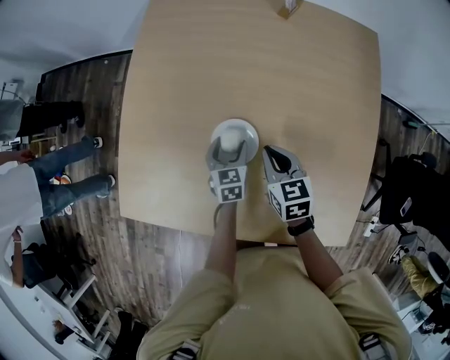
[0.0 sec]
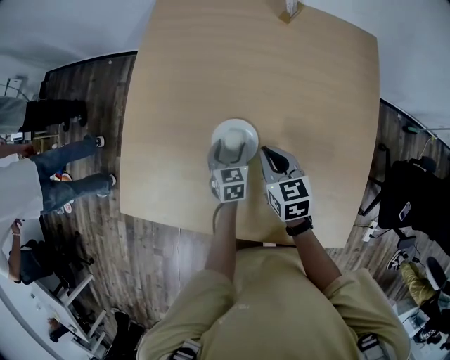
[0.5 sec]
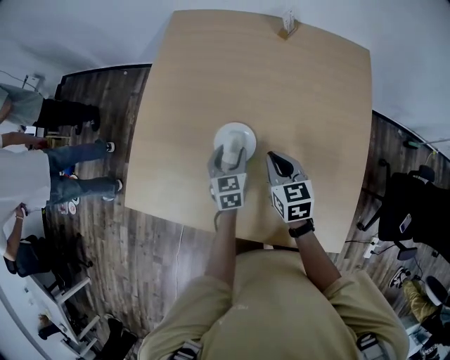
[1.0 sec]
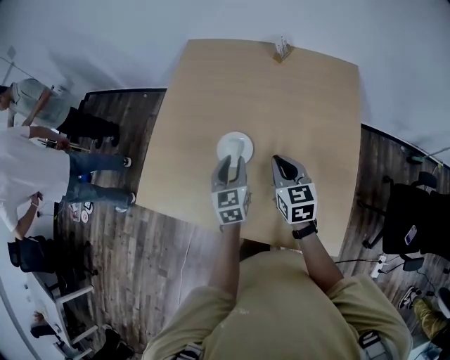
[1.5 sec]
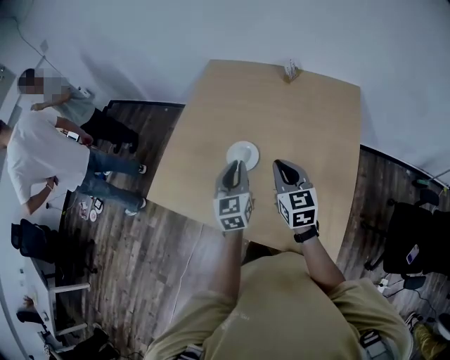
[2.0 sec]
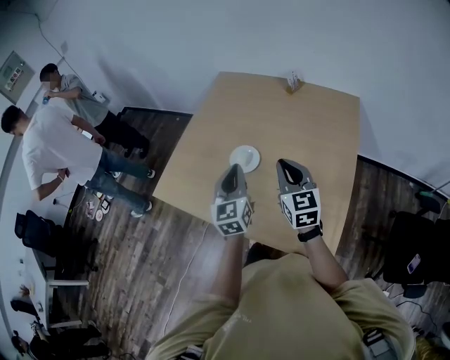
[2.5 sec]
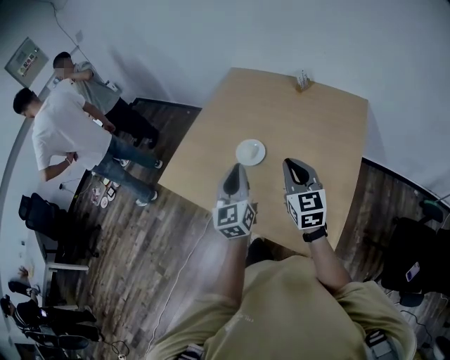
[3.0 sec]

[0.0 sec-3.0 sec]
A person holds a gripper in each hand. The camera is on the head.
0.0 sec to 1.5 sec: The left gripper heads upward and backward, covering approximately 25 cm, and closes its fingers. Meanwhile the right gripper shifts roughly 20 cm upward, backward and to the right.
1.5 sec to 3.0 sec: The two grippers go approximately 20 cm backward and upward. The left gripper changes its angle by approximately 30 degrees, and closes. Meanwhile the right gripper changes its angle by about 20 degrees.

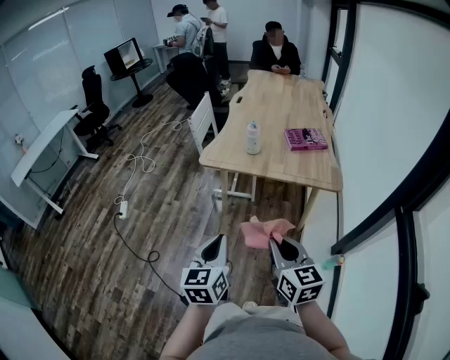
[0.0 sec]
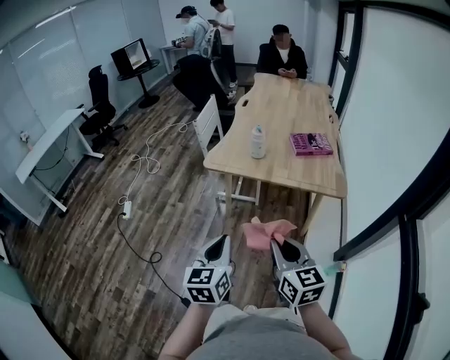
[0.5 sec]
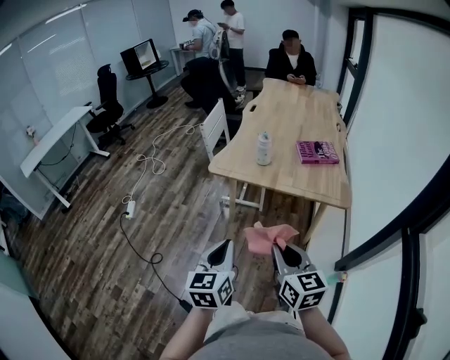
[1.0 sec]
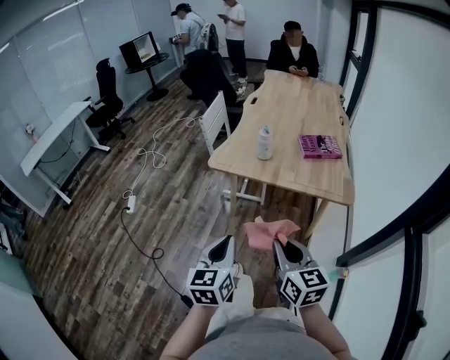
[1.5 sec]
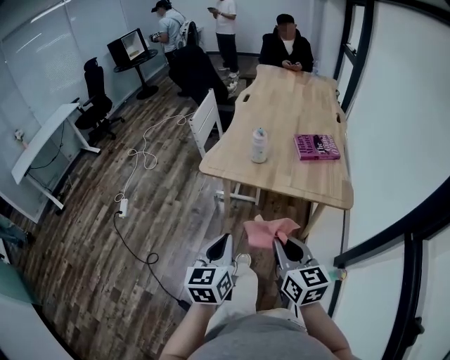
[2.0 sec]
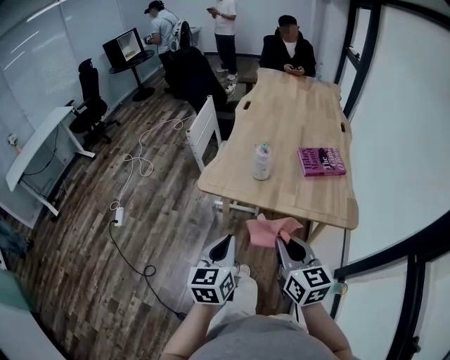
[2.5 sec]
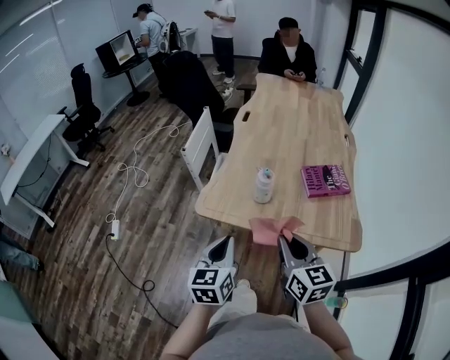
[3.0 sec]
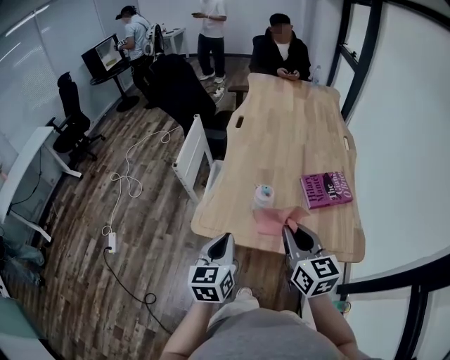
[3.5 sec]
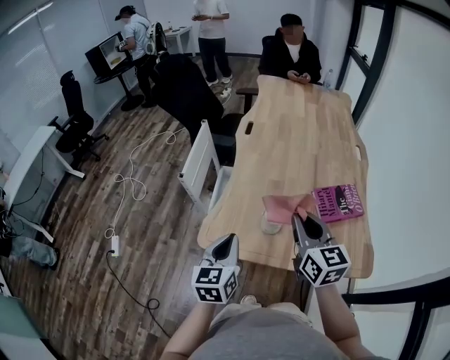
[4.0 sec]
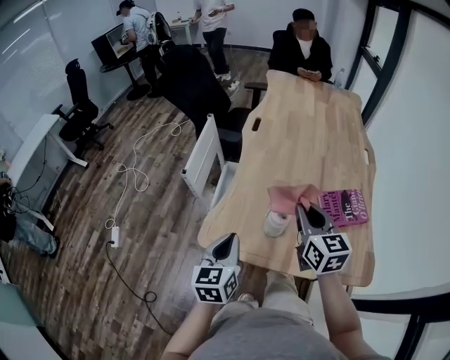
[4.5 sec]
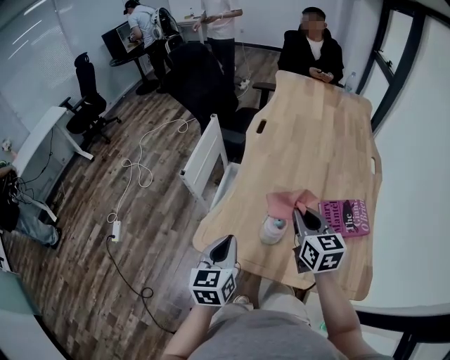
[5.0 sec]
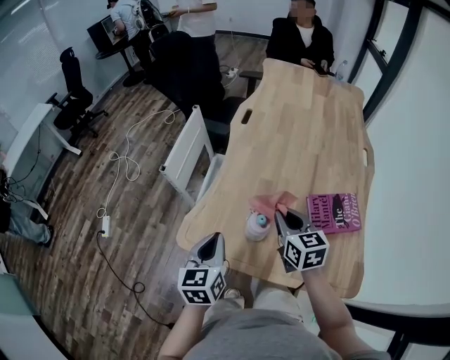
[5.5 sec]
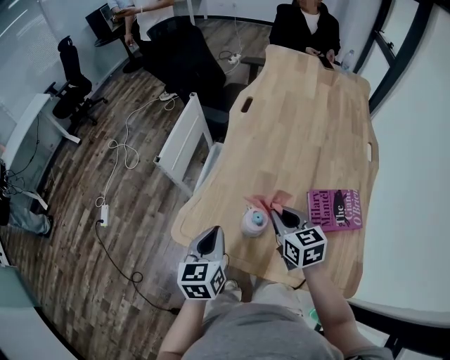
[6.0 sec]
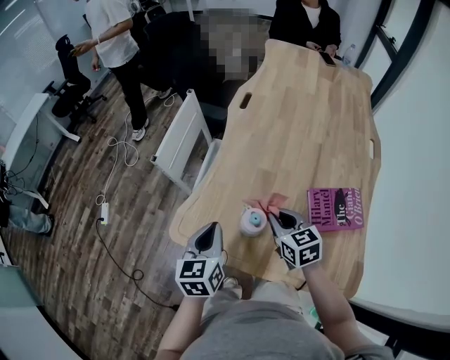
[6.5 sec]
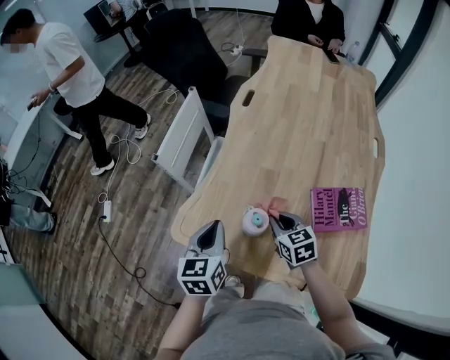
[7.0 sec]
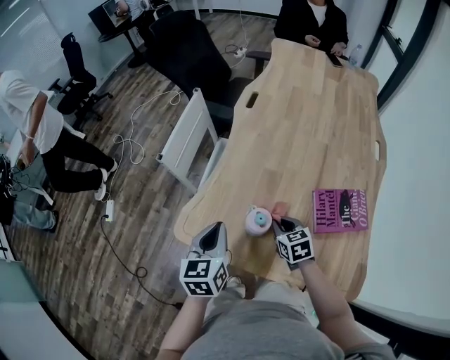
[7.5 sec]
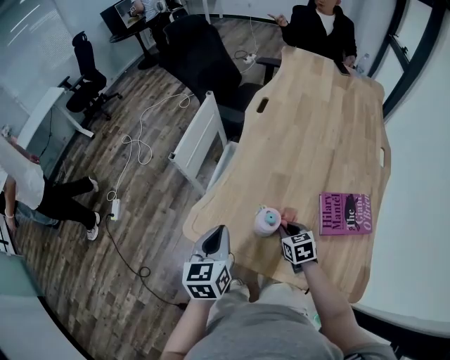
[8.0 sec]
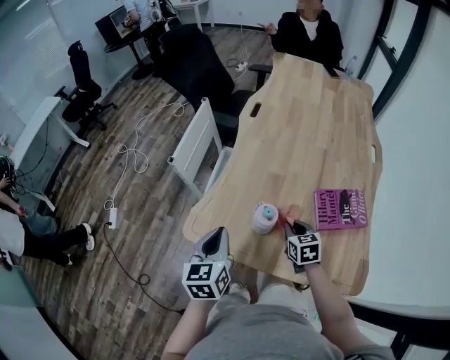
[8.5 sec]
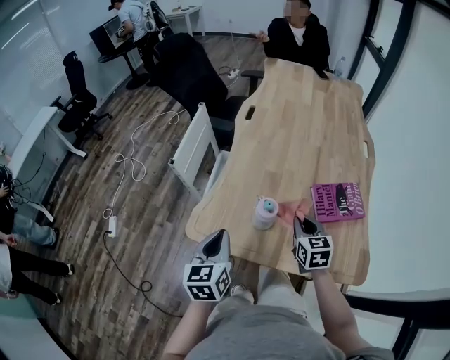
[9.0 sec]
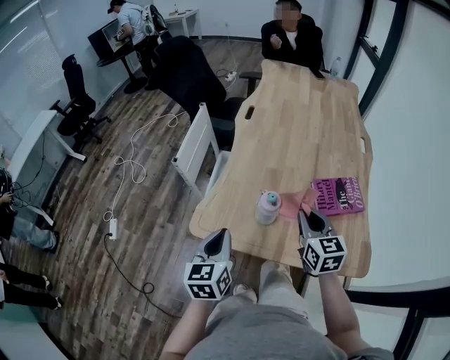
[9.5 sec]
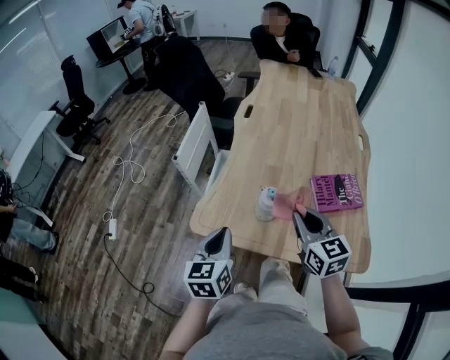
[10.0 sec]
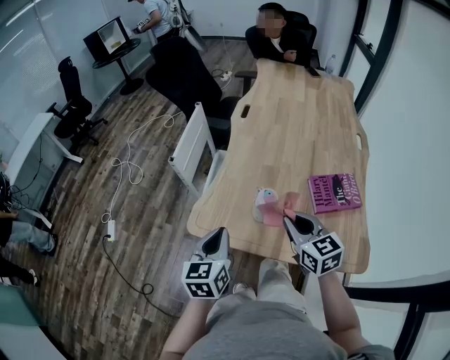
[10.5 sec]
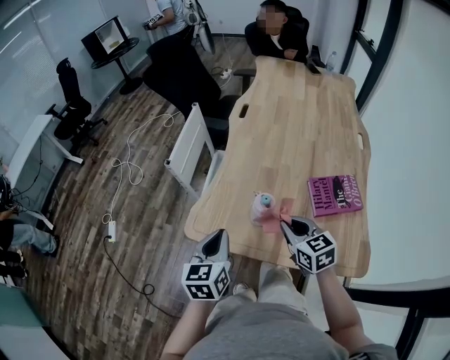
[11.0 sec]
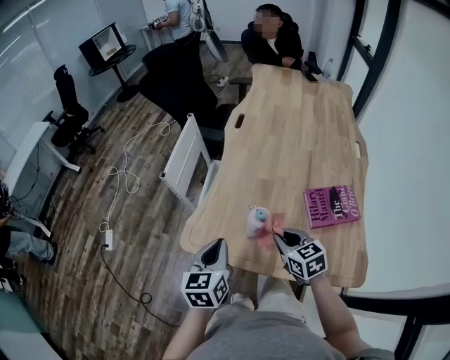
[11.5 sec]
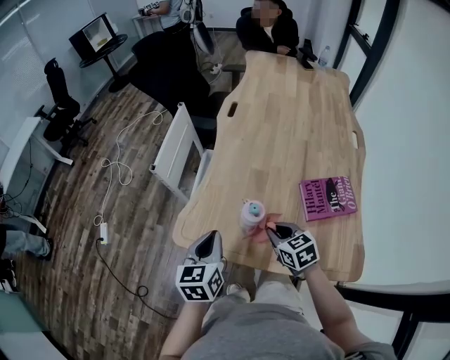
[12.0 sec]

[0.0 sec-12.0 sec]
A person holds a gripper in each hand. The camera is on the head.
0.0 sec to 2.0 sec: The two grippers go roughly 10 cm forward.
2.0 sec to 4.0 sec: The grippers both shift forward by some 40 cm.
4.0 sec to 6.0 sec: The right gripper goes some 20 cm downward and forward, and changes its angle by about 30 degrees, while the left gripper goes approximately 10 cm forward and downward.
6.0 sec to 8.0 sec: The right gripper moves downward, about 15 cm.
8.0 sec to 10.0 sec: The right gripper is displaced upward by approximately 25 cm, and tips its fingers upward by some 30 degrees. The left gripper travels backward by about 5 cm.
10.0 sec to 12.0 sec: The left gripper travels forward by some 5 cm. The right gripper shifts about 15 cm downward, and changes its angle by some 30 degrees.

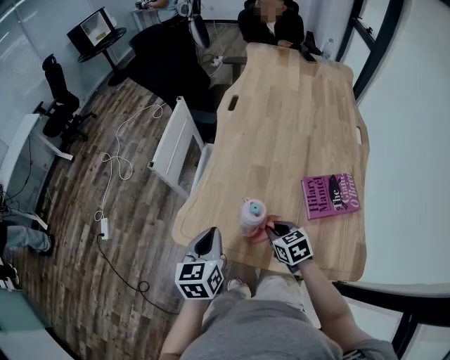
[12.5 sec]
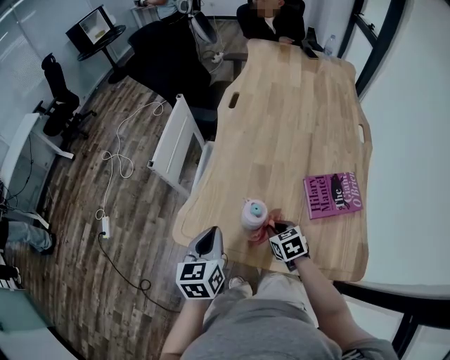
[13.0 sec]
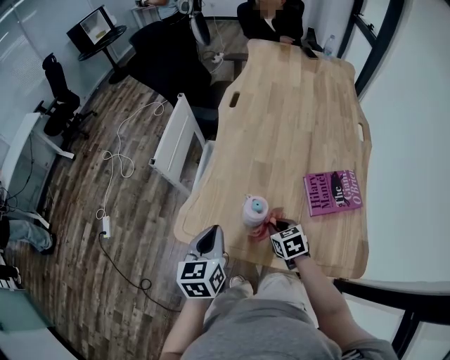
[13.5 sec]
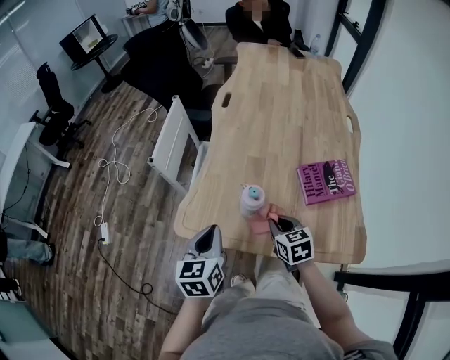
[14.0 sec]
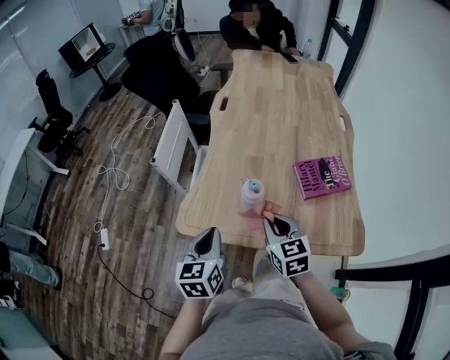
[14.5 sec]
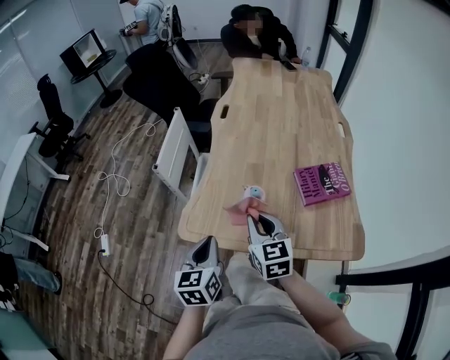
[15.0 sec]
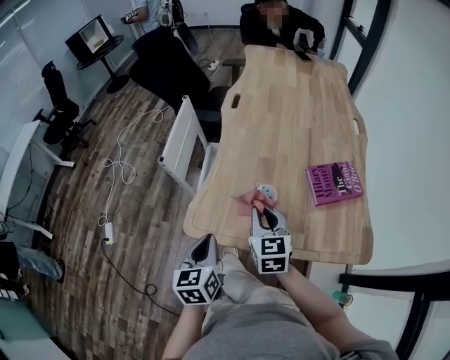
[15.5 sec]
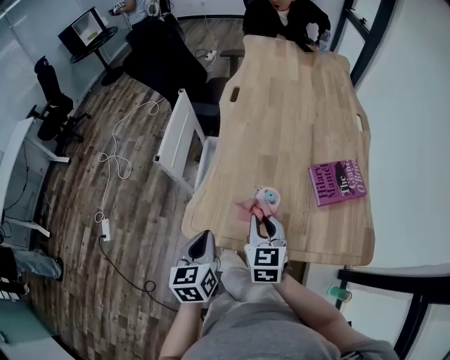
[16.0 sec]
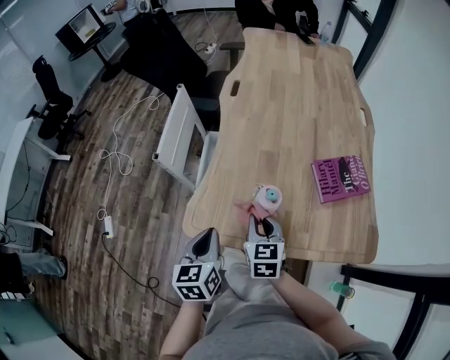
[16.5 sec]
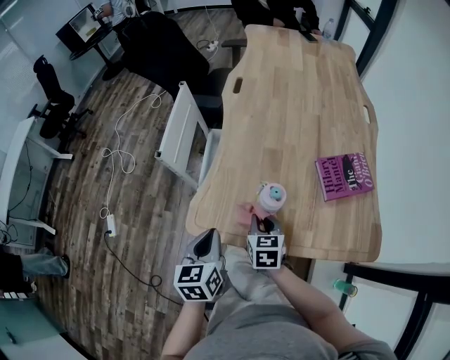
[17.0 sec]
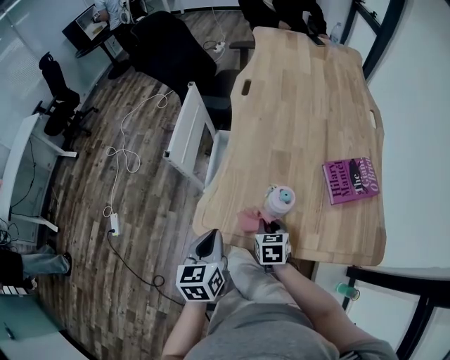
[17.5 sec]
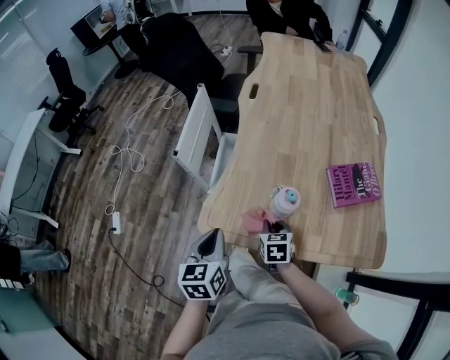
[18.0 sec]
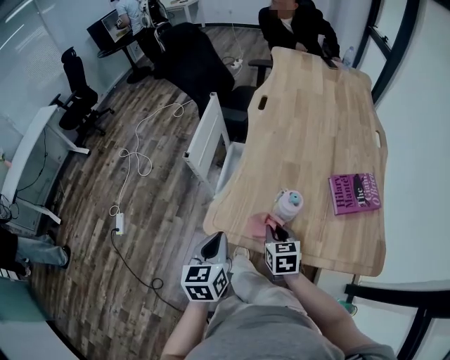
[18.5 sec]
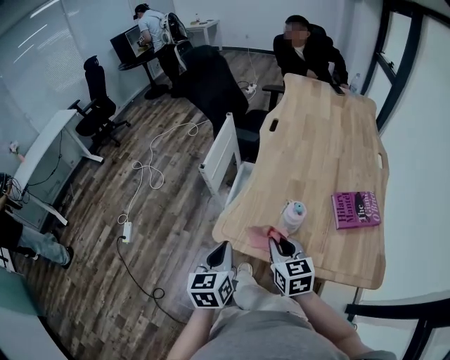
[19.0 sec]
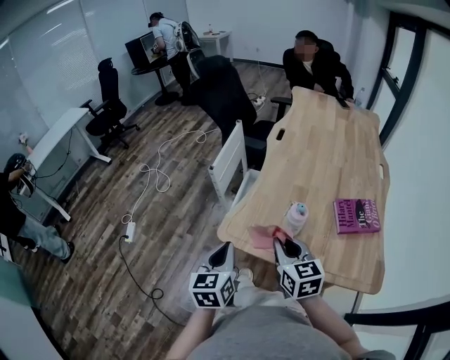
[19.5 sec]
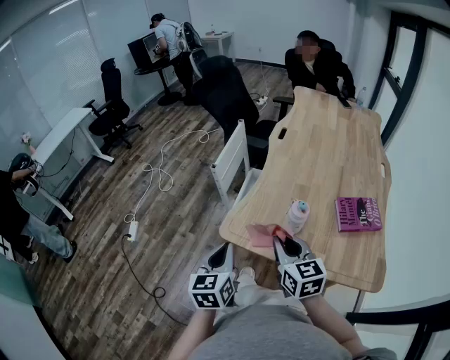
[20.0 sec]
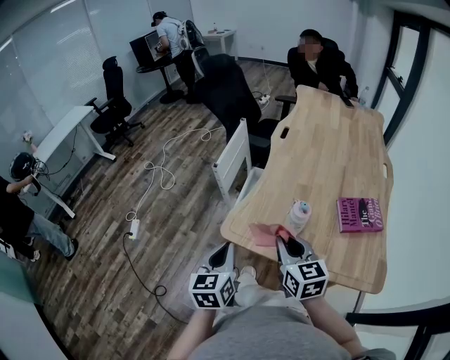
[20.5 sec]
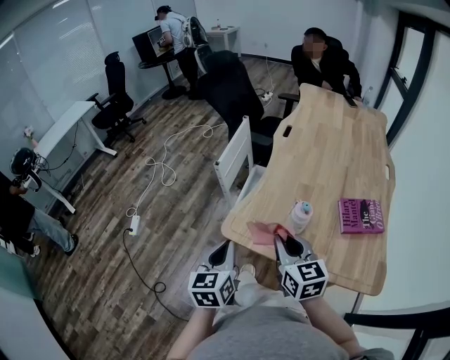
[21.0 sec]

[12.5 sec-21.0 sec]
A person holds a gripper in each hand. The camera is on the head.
12.5 sec to 14.5 sec: The right gripper moves upward and backward, approximately 15 cm, and rotates approximately 20 degrees. Meanwhile the left gripper shifts approximately 5 cm backward.
14.5 sec to 16.5 sec: The right gripper goes approximately 10 cm to the left, forward and downward. Meanwhile the left gripper changes place by roughly 5 cm.
16.5 sec to 19.0 sec: The right gripper travels backward and upward by approximately 10 cm, while the left gripper heads backward, covering some 5 cm.
19.0 sec to 21.0 sec: The right gripper shifts about 5 cm upward.

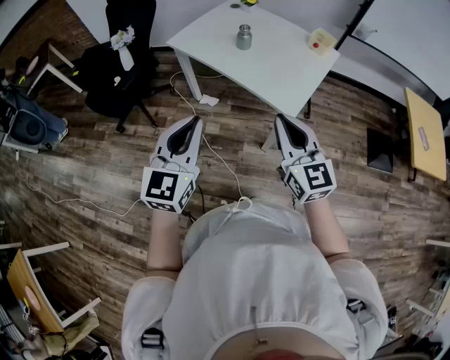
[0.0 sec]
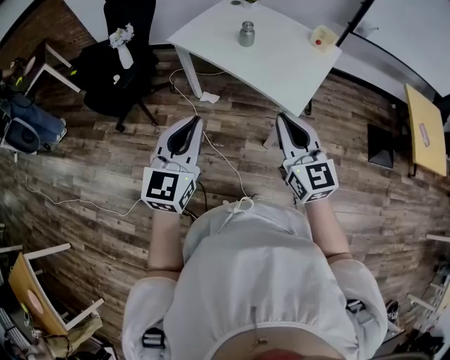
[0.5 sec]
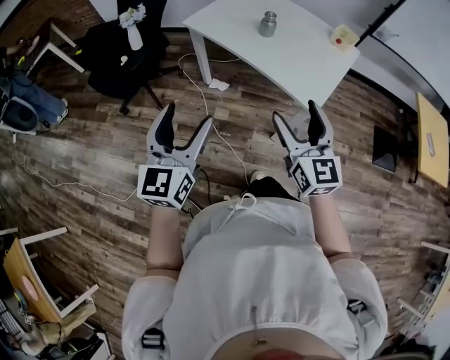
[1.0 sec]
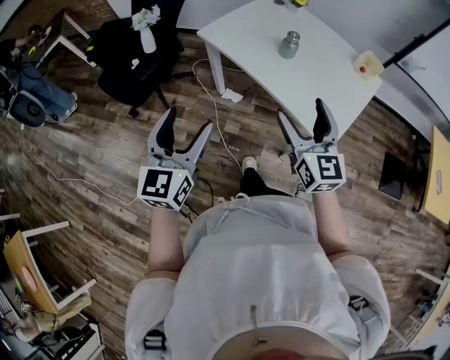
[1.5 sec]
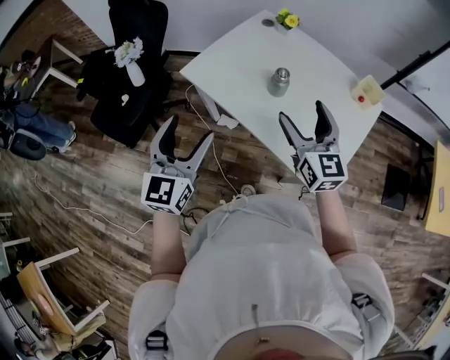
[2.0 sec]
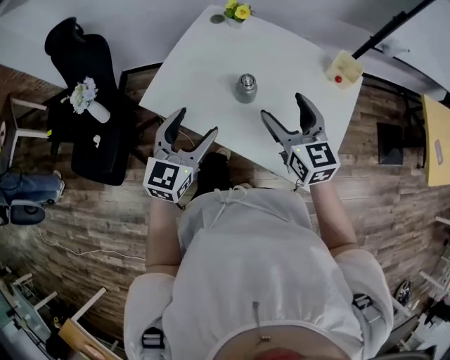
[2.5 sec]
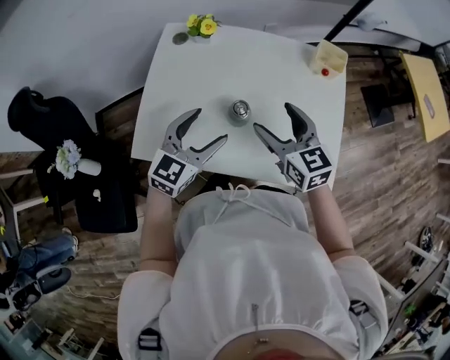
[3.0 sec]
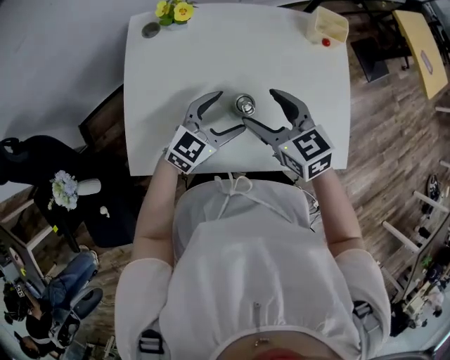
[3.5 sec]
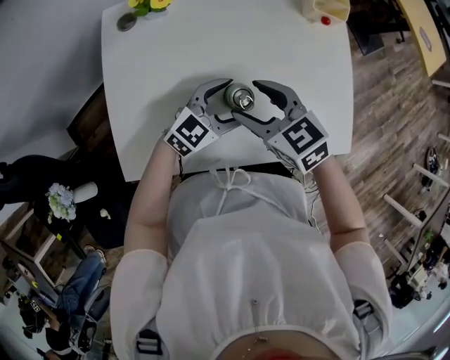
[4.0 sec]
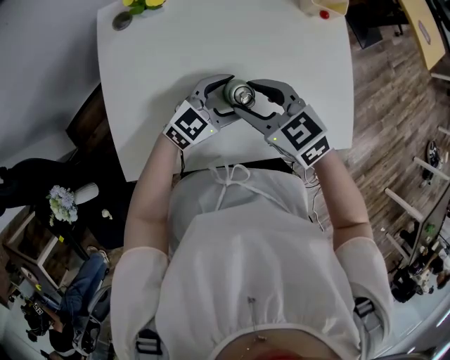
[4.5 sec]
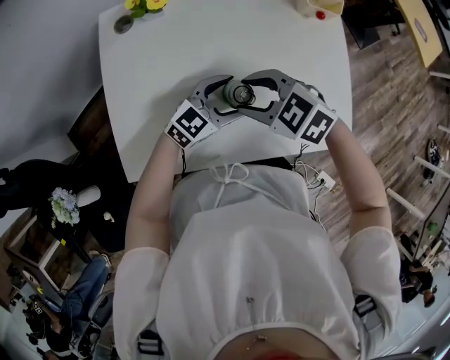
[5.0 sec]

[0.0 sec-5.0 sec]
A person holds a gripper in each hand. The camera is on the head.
0.0 sec to 2.5 sec: The two grippers travel together, forward, some 50 cm. The right gripper opens, while the left gripper opens its fingers.
2.5 sec to 5.0 sec: The left gripper shifts by roughly 30 cm, and swivels approximately 70 degrees. The right gripper moves downward, approximately 15 cm, angles its fingers downward, by approximately 40 degrees, and closes.
